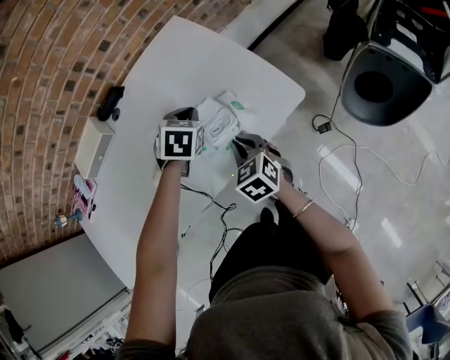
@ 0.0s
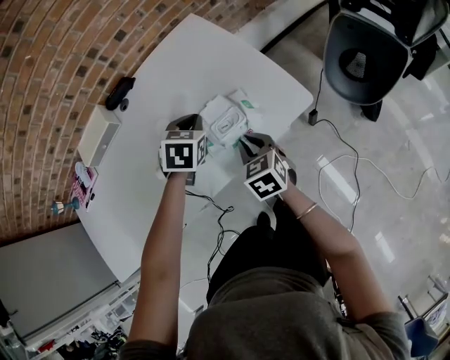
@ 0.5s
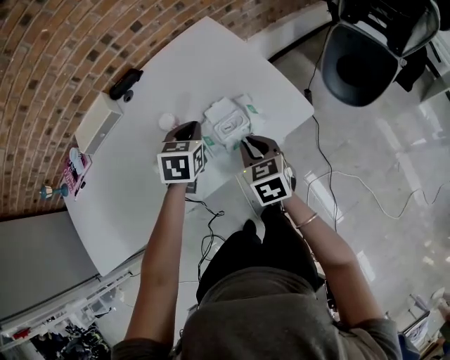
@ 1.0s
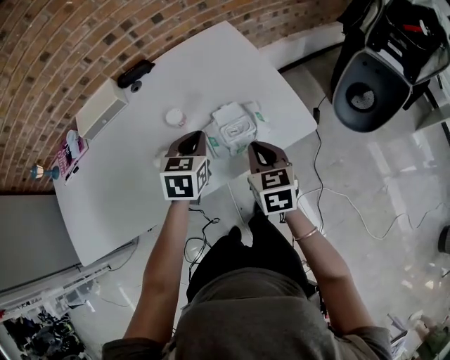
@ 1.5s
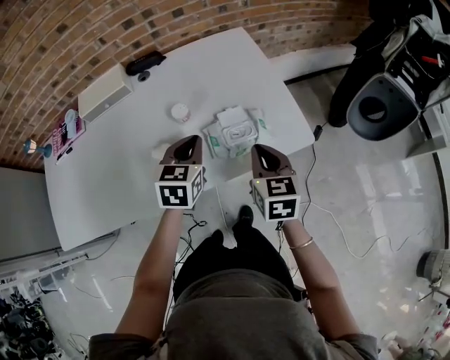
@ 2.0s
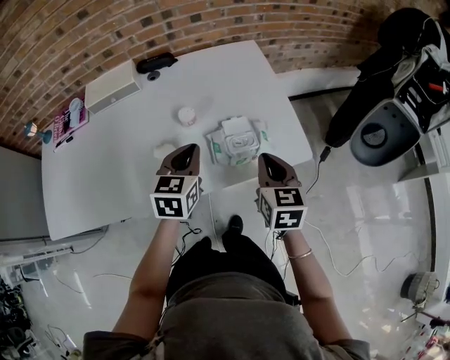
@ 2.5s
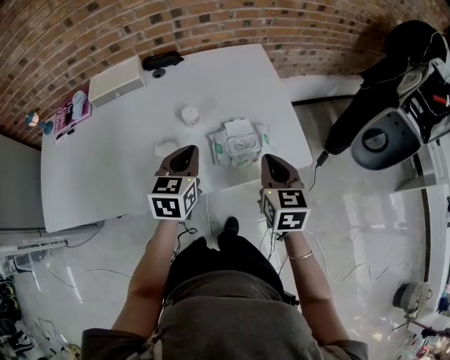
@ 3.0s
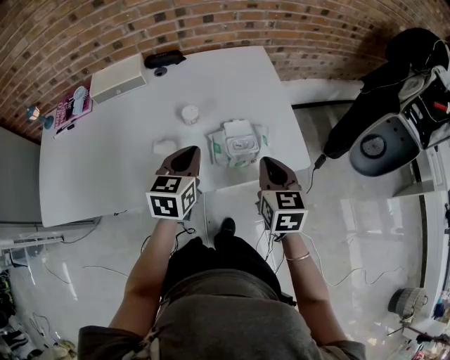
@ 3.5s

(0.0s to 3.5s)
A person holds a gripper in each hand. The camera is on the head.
0.0s - 2.0s: The right gripper heads upward, covering some 10 cm. The left gripper heads backward, to the left and upward, covering roughly 15 cm, and changes its angle by some 40 degrees.
2.0s - 3.5s: The grippers make only small movements.

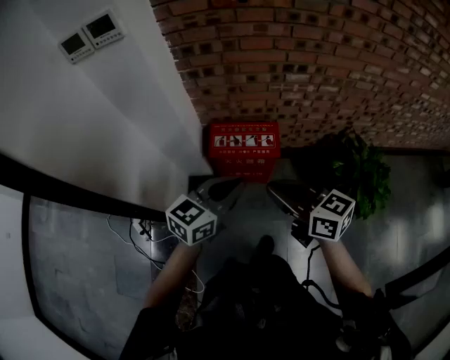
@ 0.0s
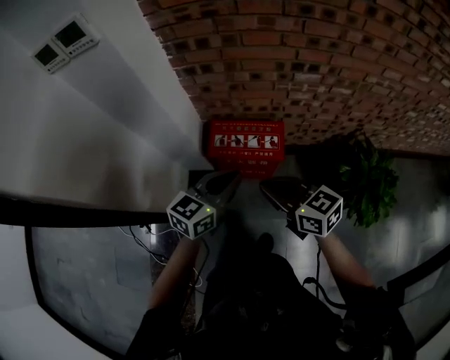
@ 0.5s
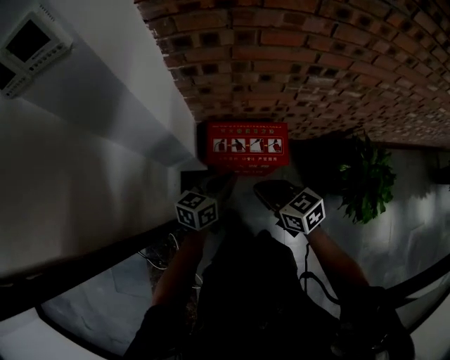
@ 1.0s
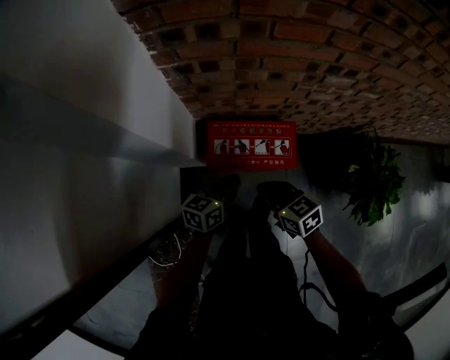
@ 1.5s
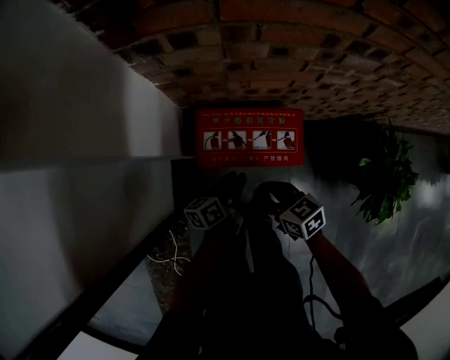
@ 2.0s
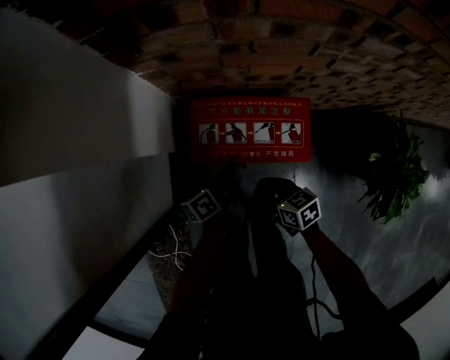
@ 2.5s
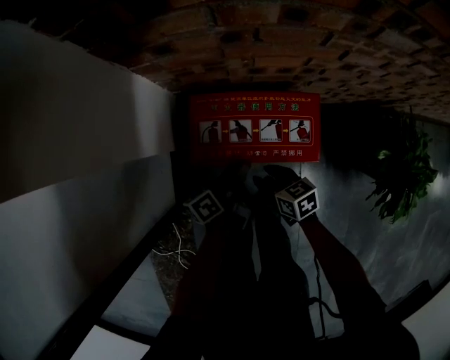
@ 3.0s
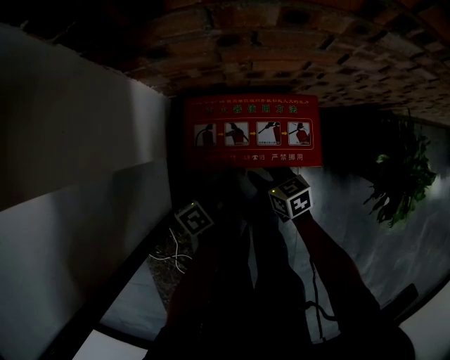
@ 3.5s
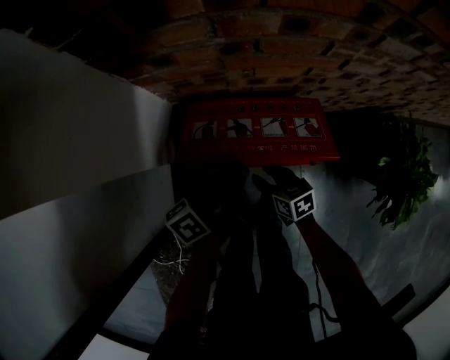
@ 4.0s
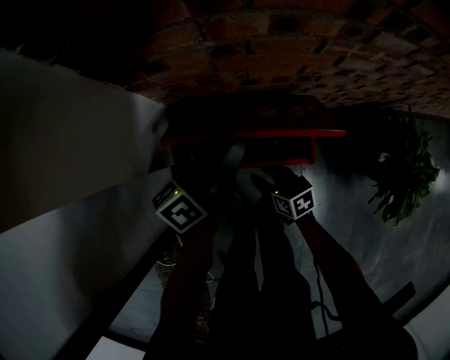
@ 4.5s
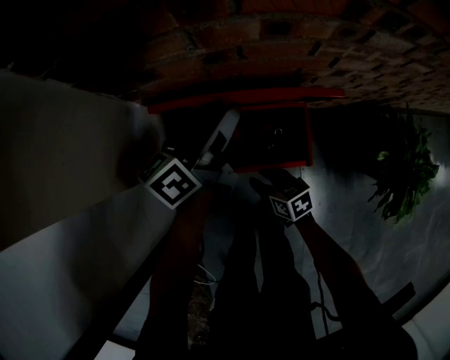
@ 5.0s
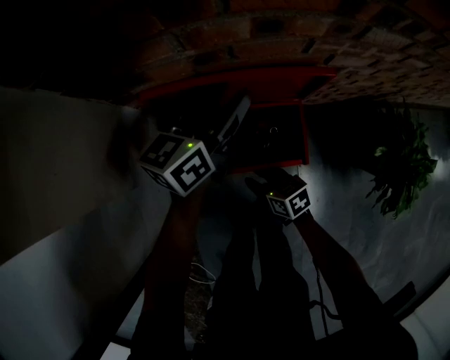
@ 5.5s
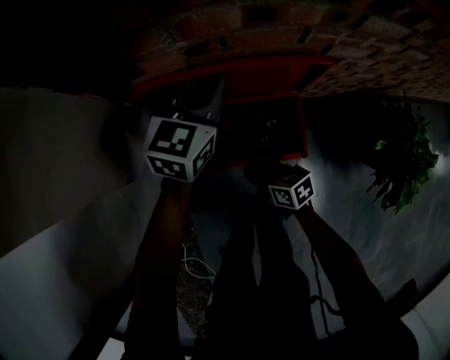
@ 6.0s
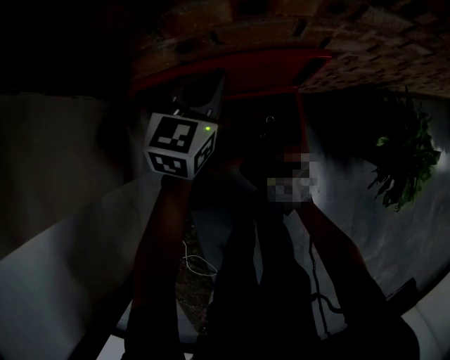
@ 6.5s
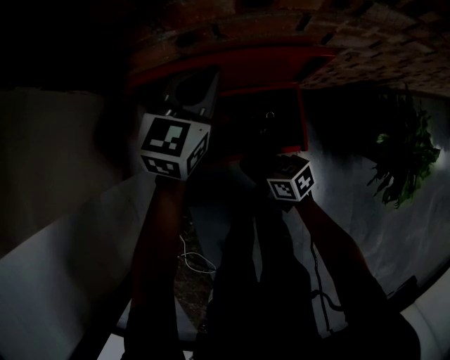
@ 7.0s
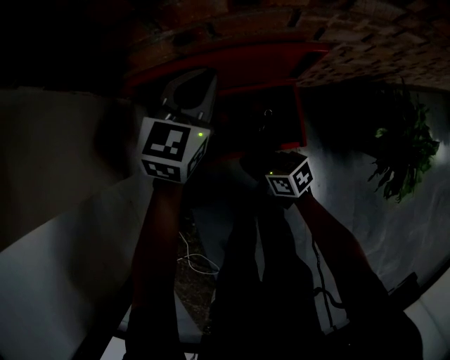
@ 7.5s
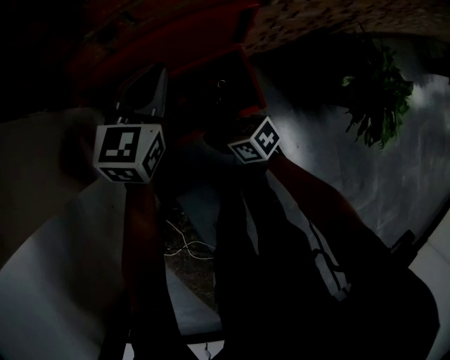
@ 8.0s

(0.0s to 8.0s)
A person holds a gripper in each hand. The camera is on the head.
0.0s - 2.0s: Both grippers move downward and forward, roughly 40 cm. The right gripper rotates about 30 degrees, and opens, while the left gripper twists roughly 50 degrees counterclockwise, seen from behind, and opens its fingers.
2.0s - 4.0s: The right gripper travels downward by roughly 15 cm, while the left gripper goes about 15 cm upward and forward, and turns by roughly 30 degrees.
4.0s - 6.0s: The left gripper is displaced forward and to the right by about 15 cm, rolls clockwise, seen from behind, by about 70 degrees, and closes its fingers; the right gripper closes its fingers.
6.0s - 8.0s: The left gripper changes place by some 5 cm.

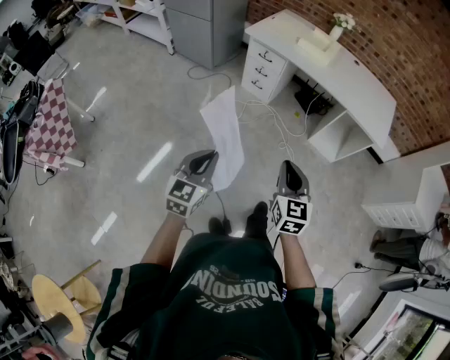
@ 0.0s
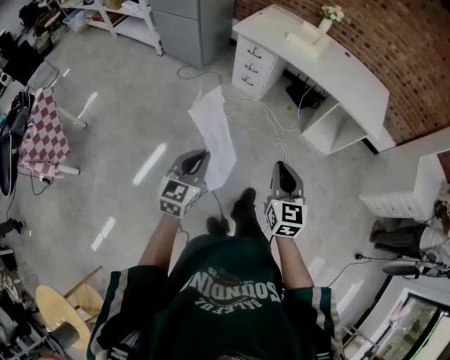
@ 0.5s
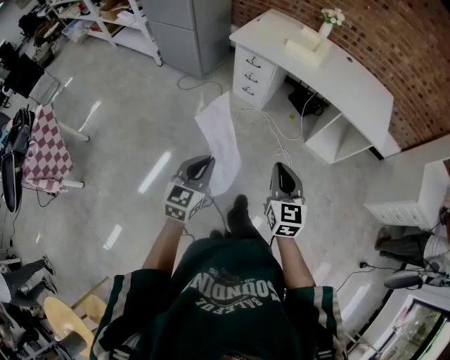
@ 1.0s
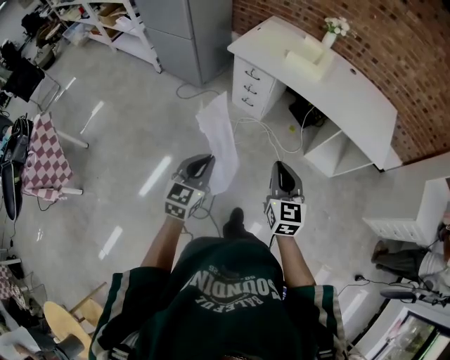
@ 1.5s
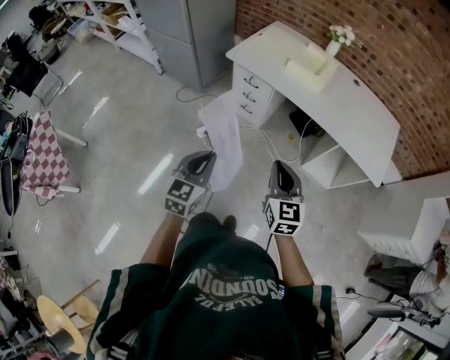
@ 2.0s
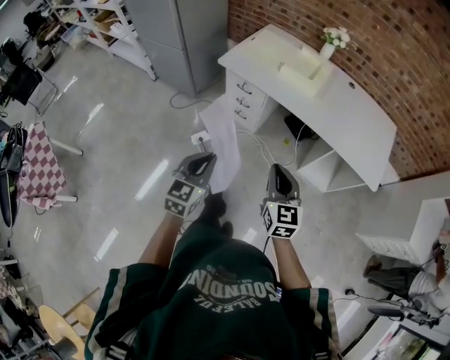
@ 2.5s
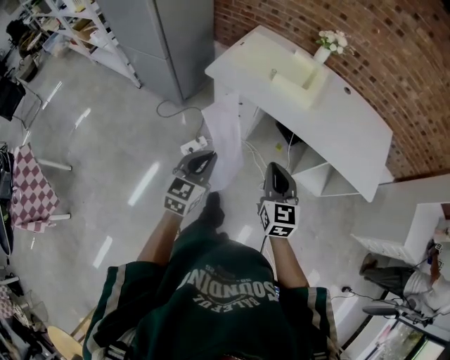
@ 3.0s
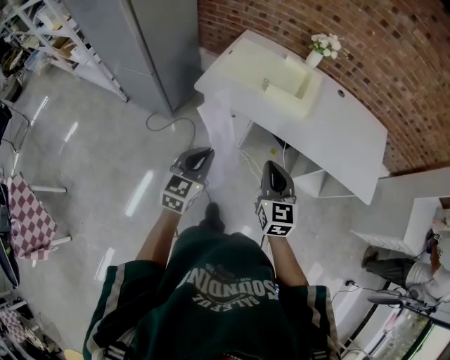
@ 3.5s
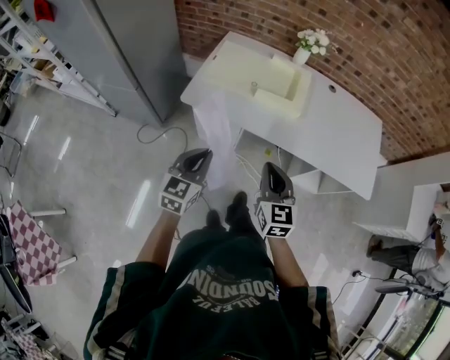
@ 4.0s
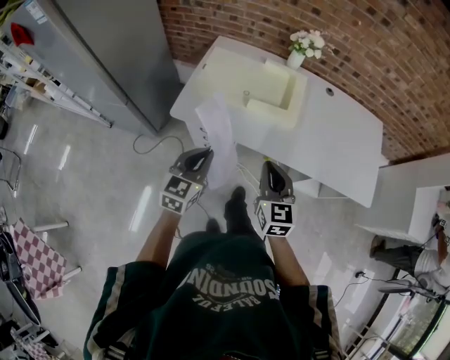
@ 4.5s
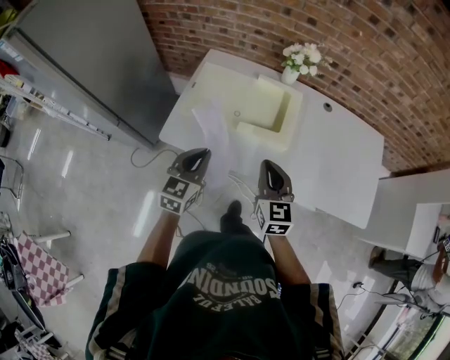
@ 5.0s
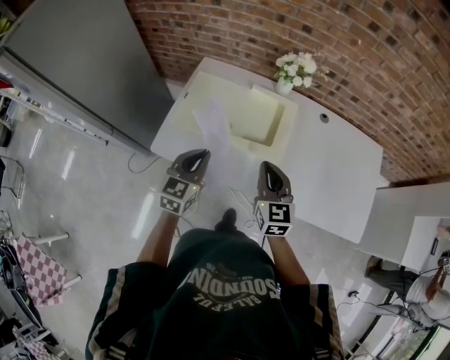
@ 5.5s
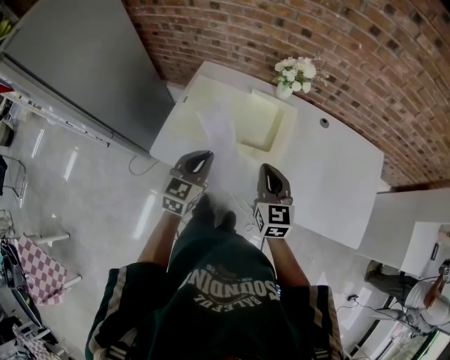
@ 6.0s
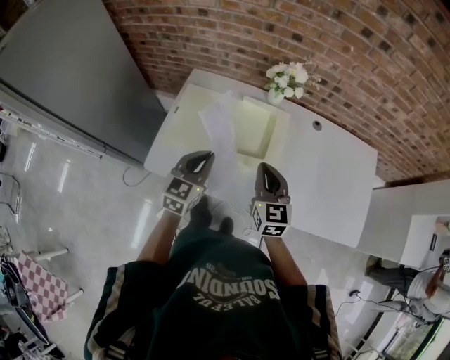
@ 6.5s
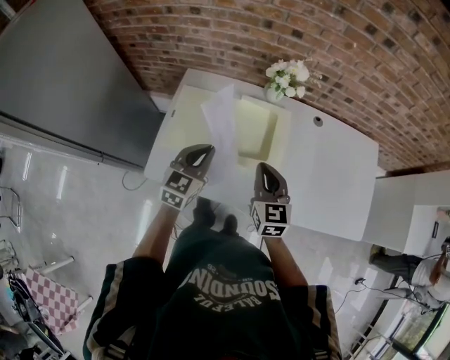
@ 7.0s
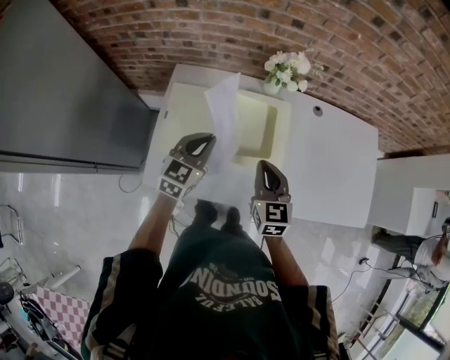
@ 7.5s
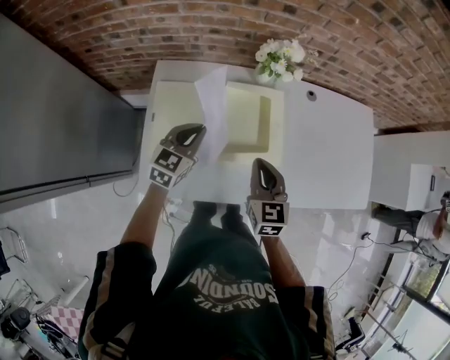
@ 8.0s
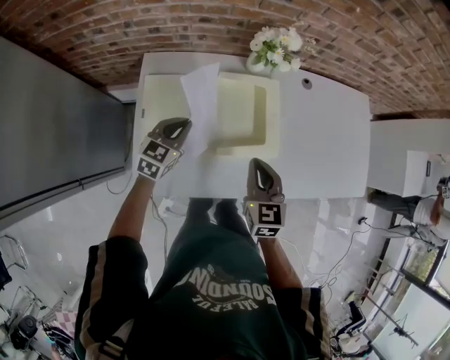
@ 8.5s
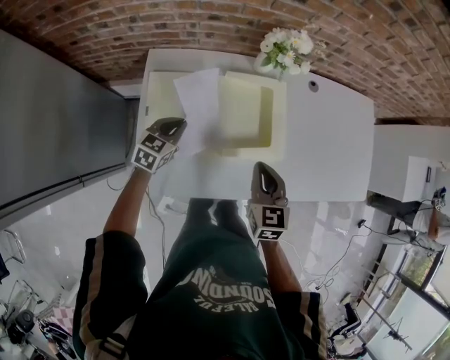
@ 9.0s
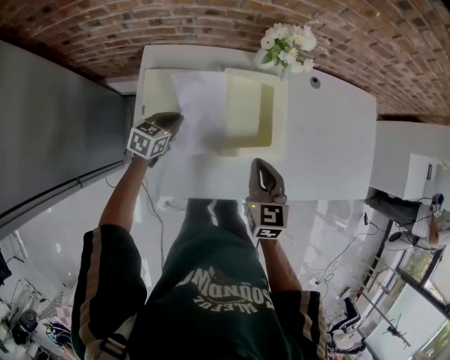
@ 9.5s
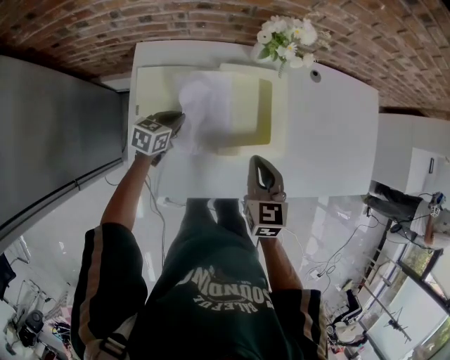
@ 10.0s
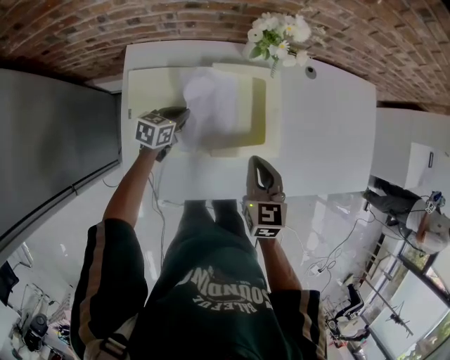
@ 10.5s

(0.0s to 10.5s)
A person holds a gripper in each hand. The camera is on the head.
0.0s - 2.0s: Both grippers travel together forward, roughly 30 cm.
2.0s - 4.0s: The two grippers go roughly 35 cm forward.
4.0s - 6.5s: Both grippers travel together forward, approximately 35 cm.
6.5s - 8.5s: The right gripper travels downward and to the left by approximately 10 cm, and rotates roughly 20 degrees, while the left gripper is displaced forward, downward and to the left by roughly 20 cm, and rotates approximately 30 degrees.
8.5s - 10.5s: The left gripper heads downward and forward, covering some 15 cm, and rotates some 30 degrees.

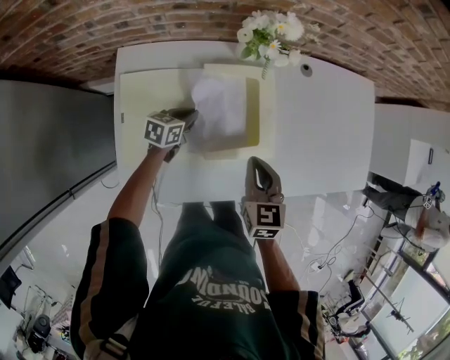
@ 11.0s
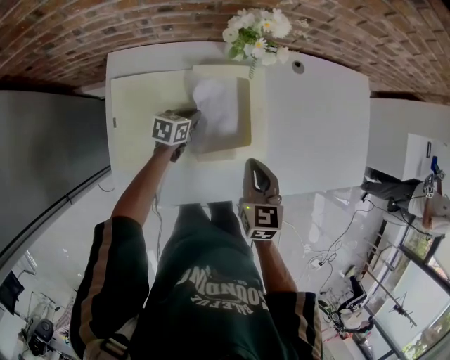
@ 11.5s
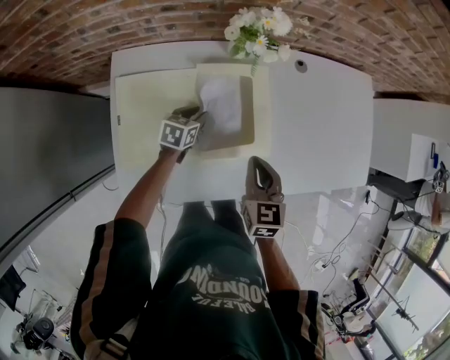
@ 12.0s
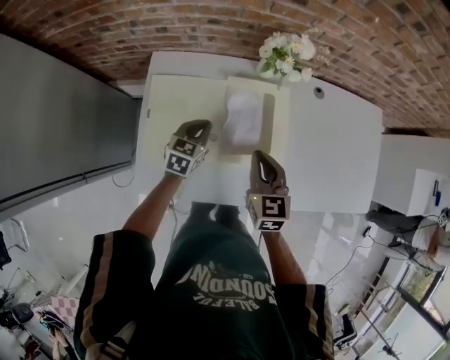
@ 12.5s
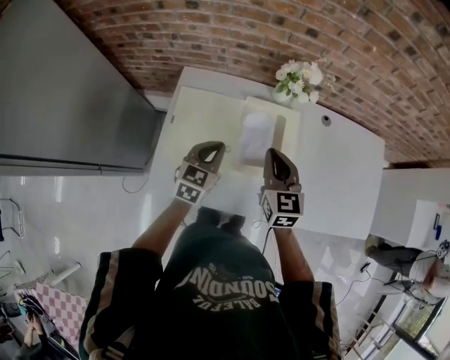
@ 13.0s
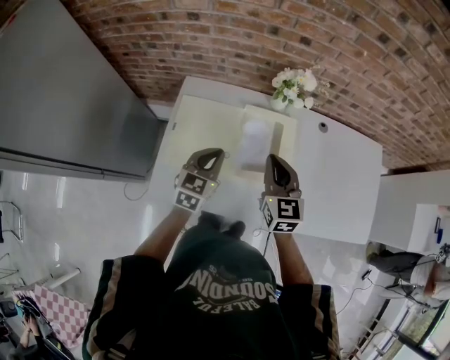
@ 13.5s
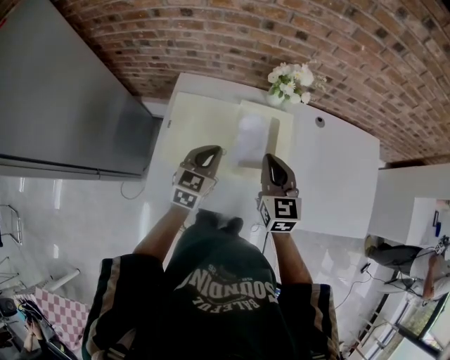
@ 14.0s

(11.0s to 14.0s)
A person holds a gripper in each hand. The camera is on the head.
11.0s - 12.5s: The left gripper heads upward, covering about 10 cm, rotates some 30 degrees, and opens and closes again. Meanwhile the right gripper ends up roughly 5 cm from where it was.
12.5s - 14.0s: The left gripper heads upward and backward, covering some 15 cm, while the right gripper moves upward, roughly 5 cm.

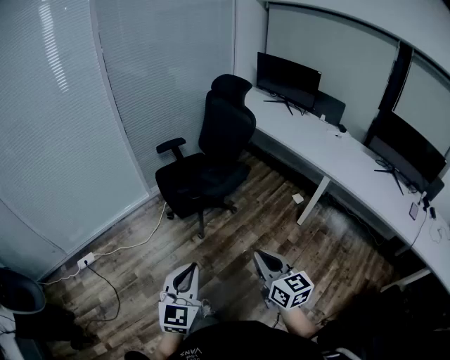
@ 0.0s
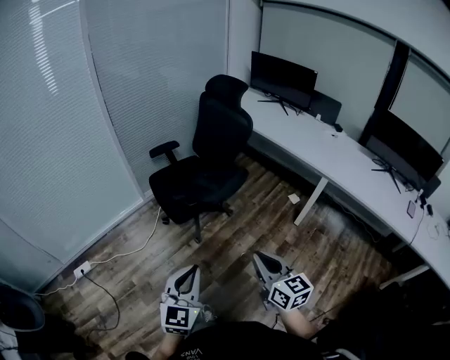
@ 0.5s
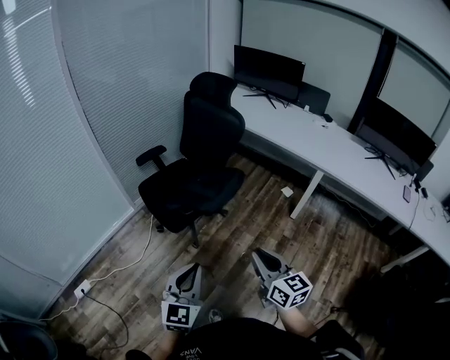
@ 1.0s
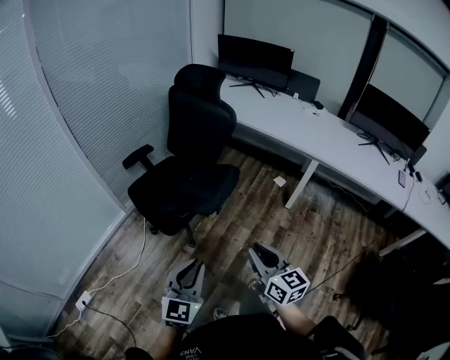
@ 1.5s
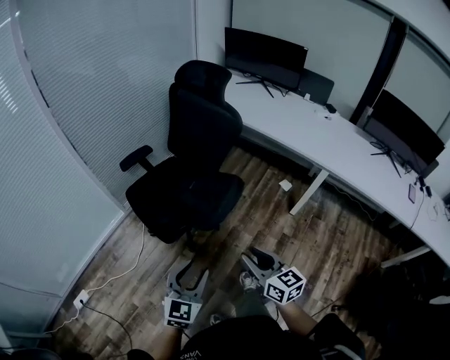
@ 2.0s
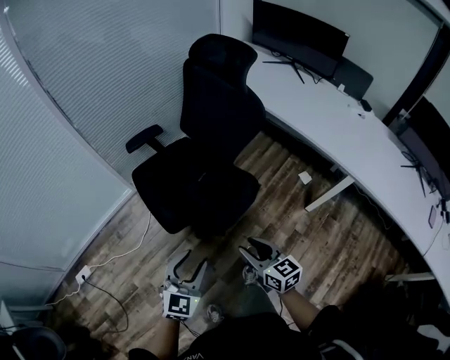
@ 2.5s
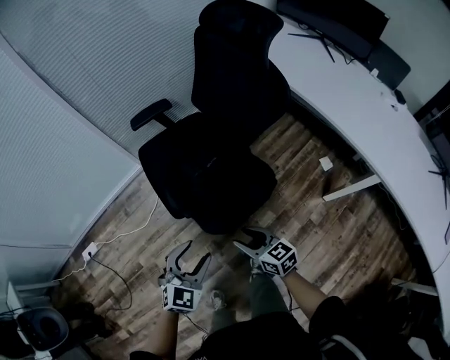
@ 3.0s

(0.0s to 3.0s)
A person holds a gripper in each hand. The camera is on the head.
0.0s - 1.5s: The right gripper heads forward and to the left, covering some 20 cm. Meanwhile the left gripper heads forward, covering about 20 cm, and rotates some 20 degrees.
1.5s - 3.0s: The right gripper changes place by roughly 35 cm, changes its angle by approximately 50 degrees, and opens. Meanwhile the left gripper moves approximately 30 cm, changes its angle by about 30 degrees, and opens up.
